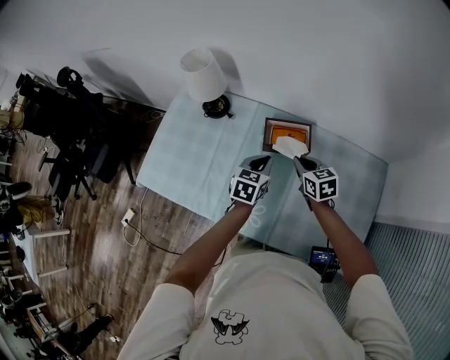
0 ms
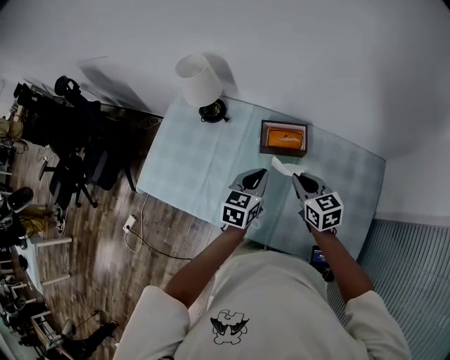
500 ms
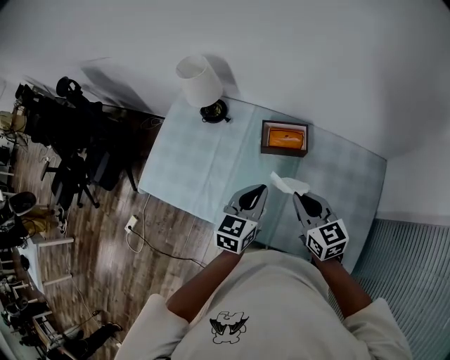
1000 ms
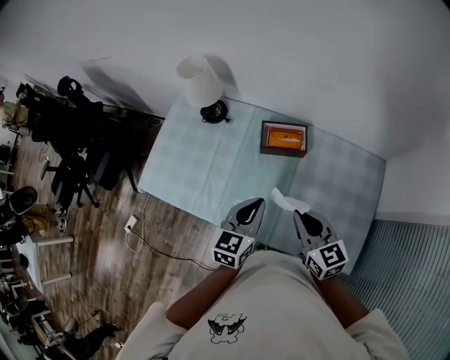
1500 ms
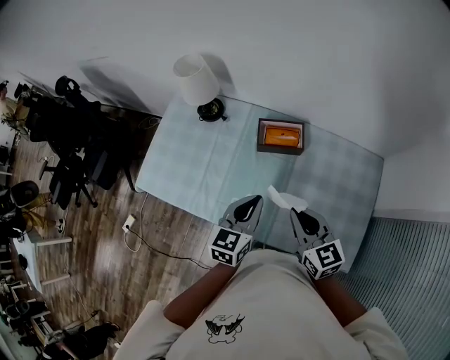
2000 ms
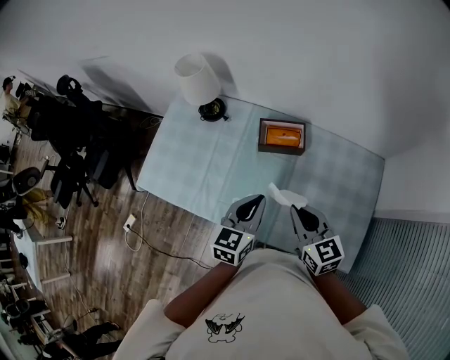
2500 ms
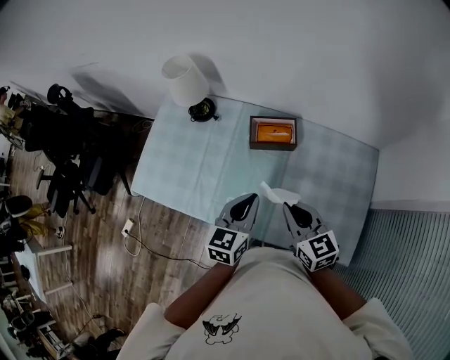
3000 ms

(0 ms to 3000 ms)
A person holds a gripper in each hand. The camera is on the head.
0 ms - 1500 ms: The grippers both shift backward and upward by about 20 cm.
1500 ms - 3000 ms: Neither gripper changes place.

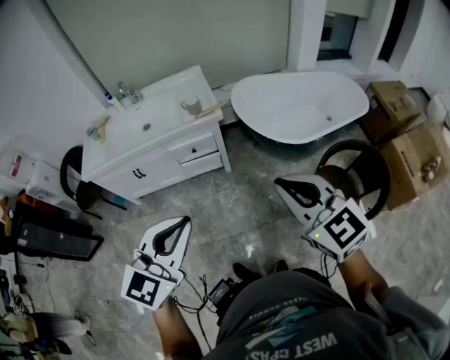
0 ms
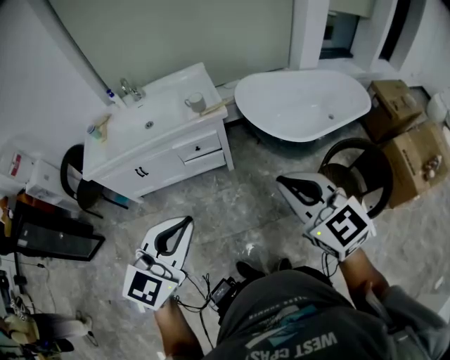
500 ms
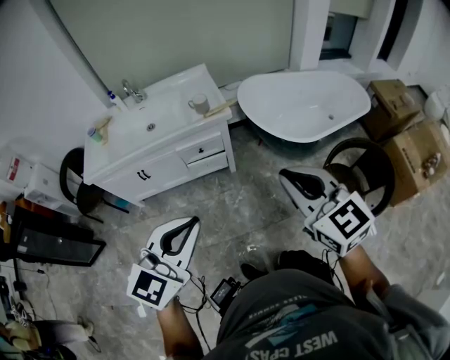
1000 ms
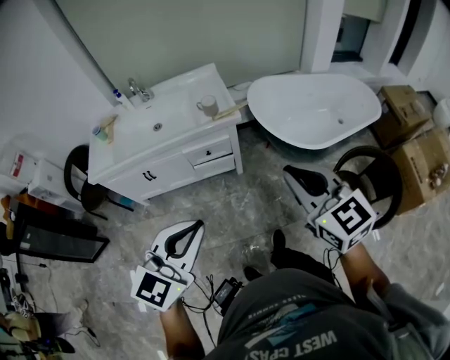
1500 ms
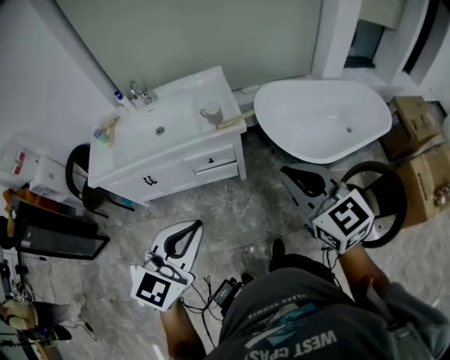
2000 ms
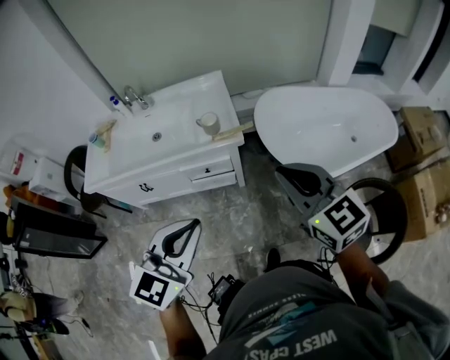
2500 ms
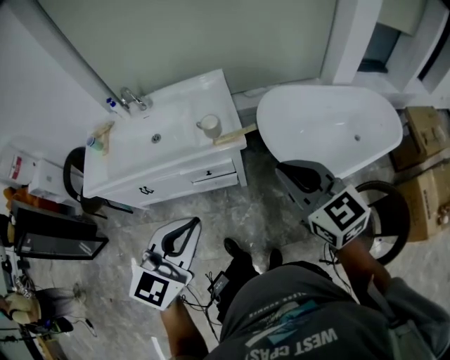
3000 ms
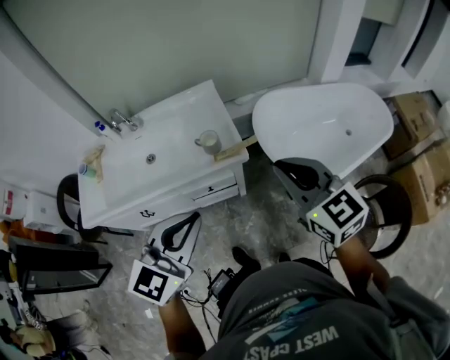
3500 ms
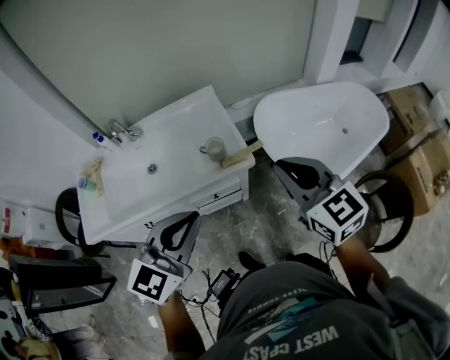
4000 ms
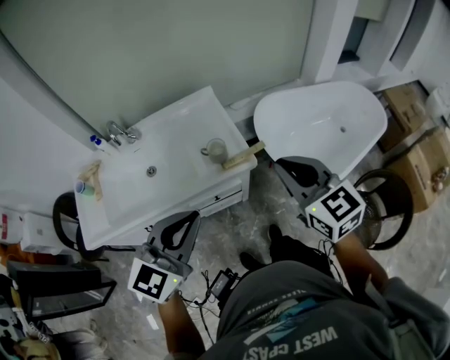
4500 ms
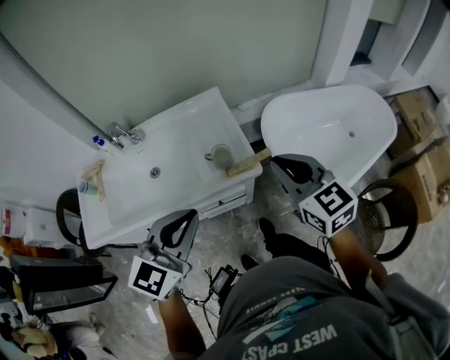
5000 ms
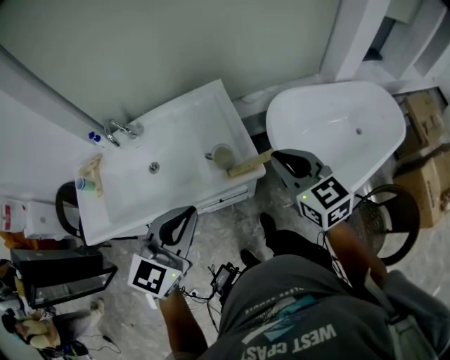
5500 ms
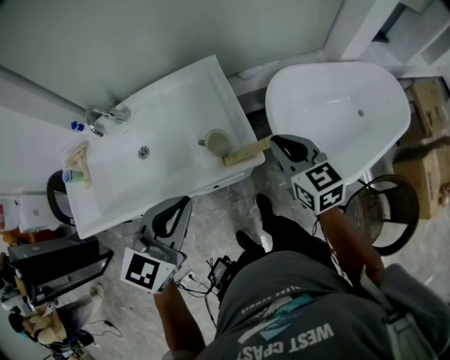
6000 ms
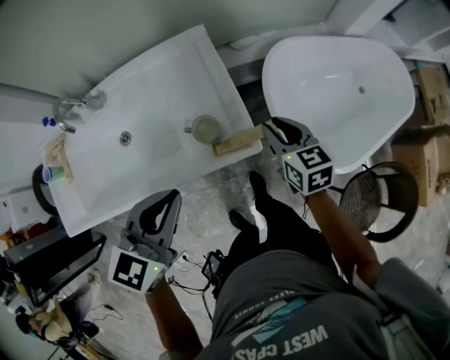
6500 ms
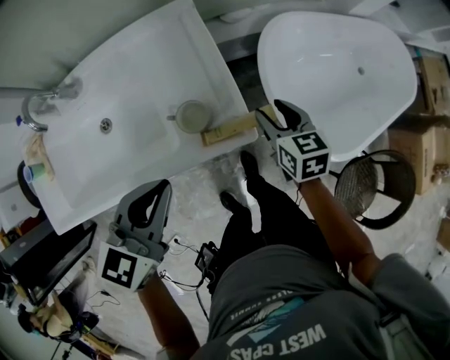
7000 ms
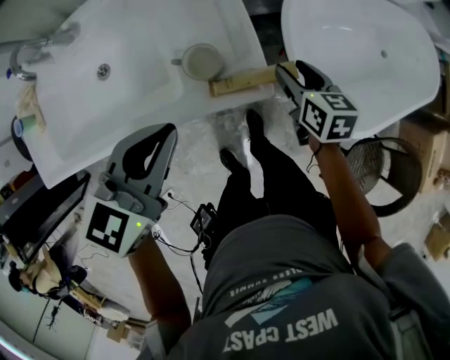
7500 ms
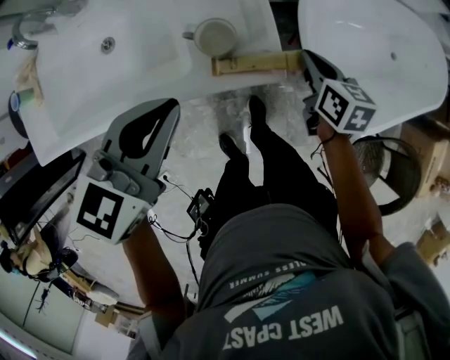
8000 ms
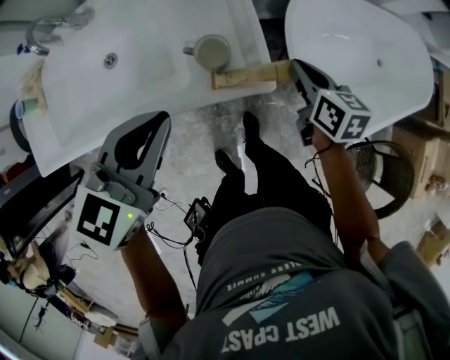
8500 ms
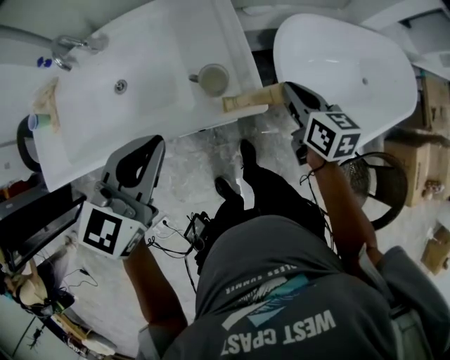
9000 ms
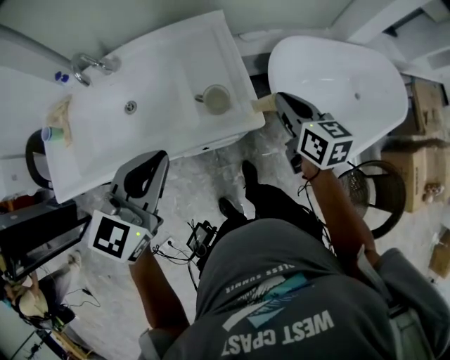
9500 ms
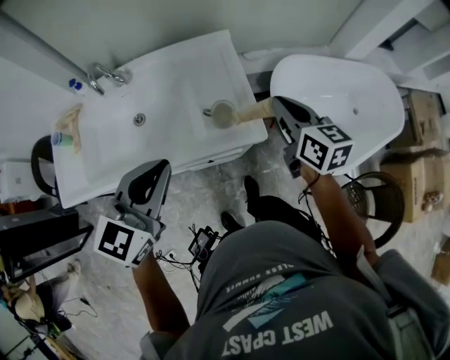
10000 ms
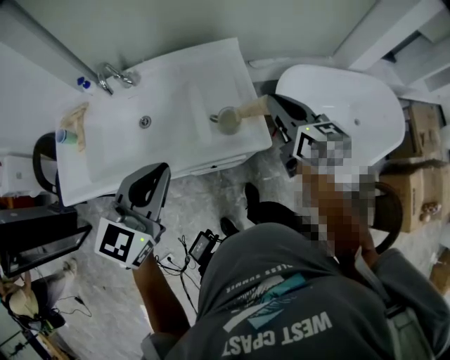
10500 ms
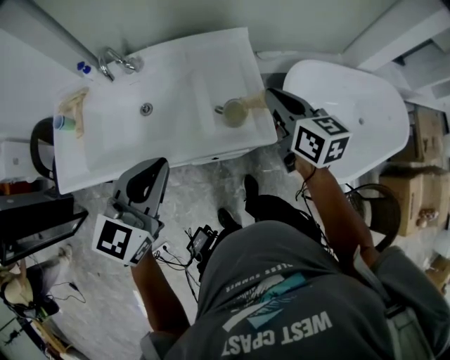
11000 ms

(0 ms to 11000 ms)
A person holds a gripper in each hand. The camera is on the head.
0 ms - 2000 ms: Both grippers move forward, roughly 15 cm.
2000 ms - 3500 ms: The two grippers go approximately 20 cm forward.
3500 ms - 5500 ms: The right gripper goes some 20 cm forward and downward. The left gripper moves forward and to the left, some 15 cm.
5500 ms - 7500 ms: The left gripper is displaced downward and forward by approximately 20 cm, and turns by some 20 degrees. Meanwhile the right gripper moves downward and forward, about 30 cm, rotates approximately 30 degrees, and opens up.
7500 ms - 9000 ms: The right gripper heads upward, covering some 10 cm, and closes up. Meanwhile the left gripper travels upward by roughly 5 cm.
9000 ms - 11000 ms: The right gripper is displaced upward and to the left by some 15 cm. Meanwhile the left gripper travels upward and to the left by about 5 cm.

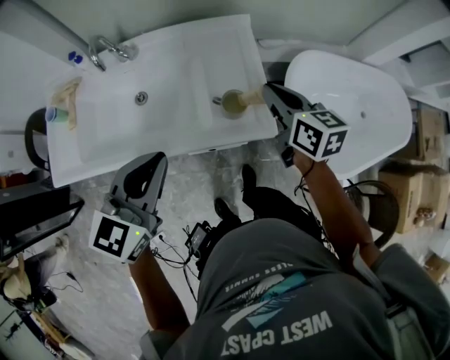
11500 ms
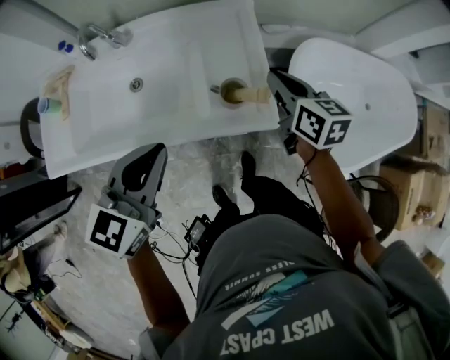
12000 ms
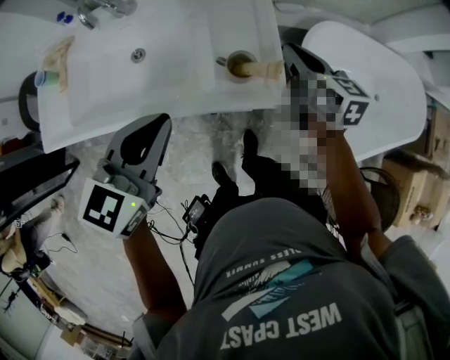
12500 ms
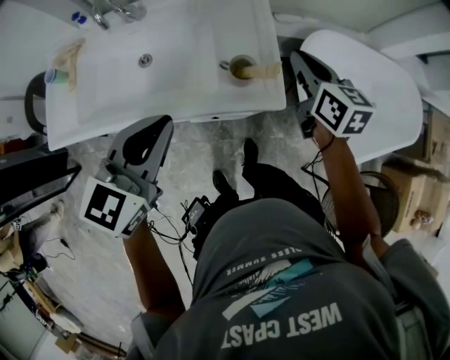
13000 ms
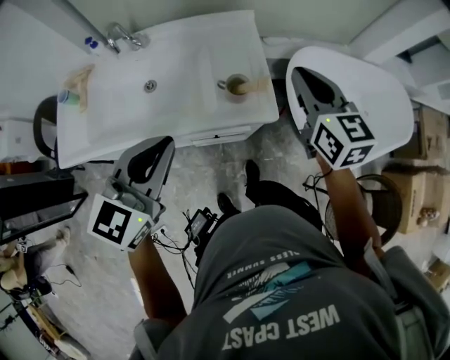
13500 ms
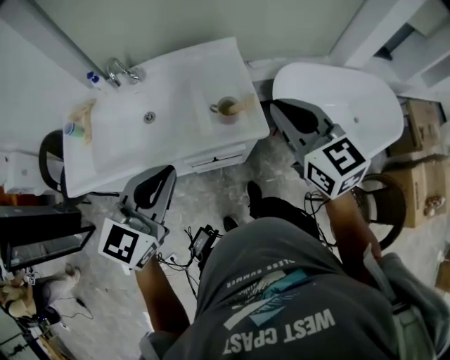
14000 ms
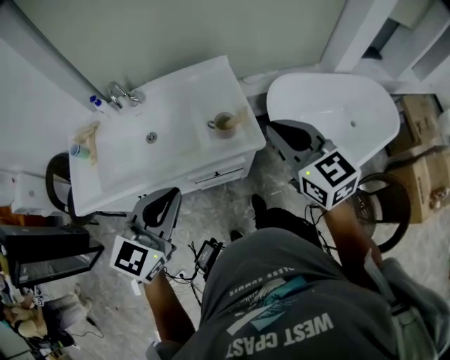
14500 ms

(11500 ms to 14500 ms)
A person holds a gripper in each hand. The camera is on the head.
13000 ms - 14500 ms: The right gripper shifts approximately 25 cm backward and upward, and changes its angle by some 20 degrees, while the left gripper goes about 10 cm backward and upward.

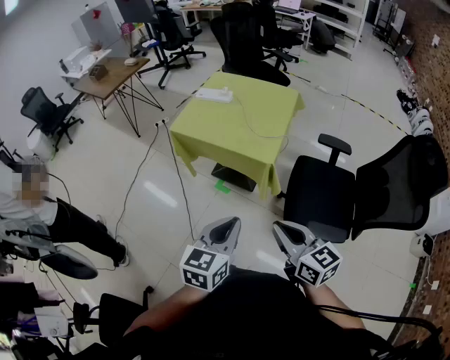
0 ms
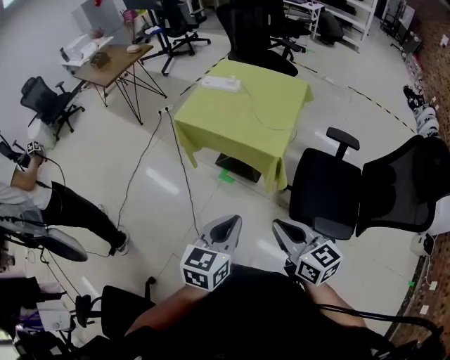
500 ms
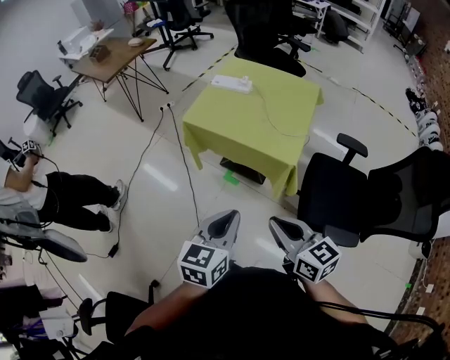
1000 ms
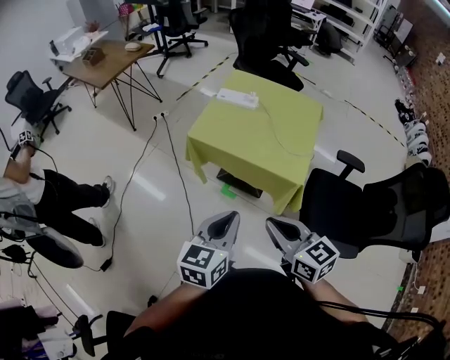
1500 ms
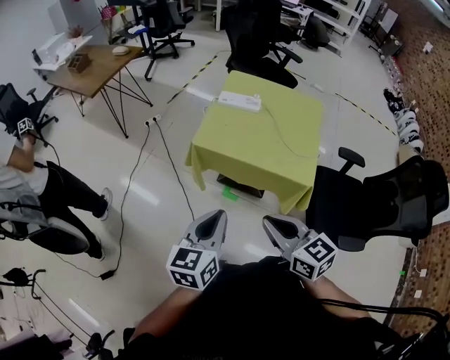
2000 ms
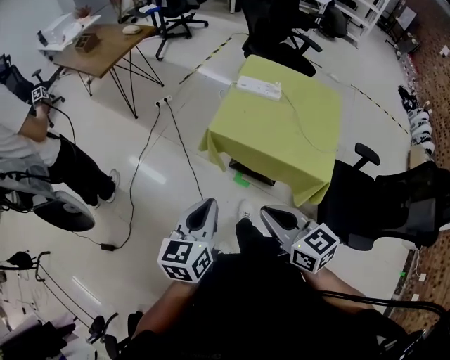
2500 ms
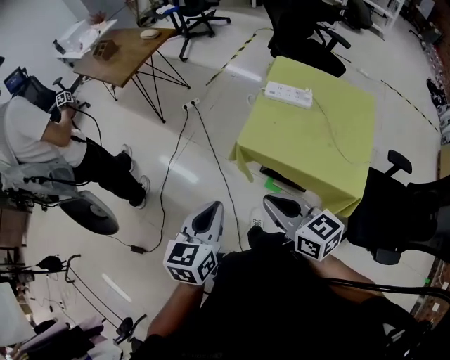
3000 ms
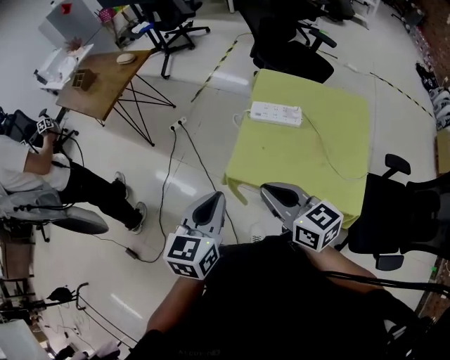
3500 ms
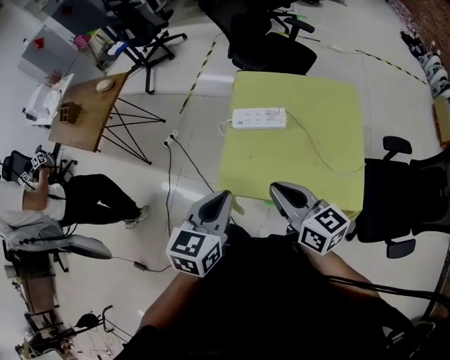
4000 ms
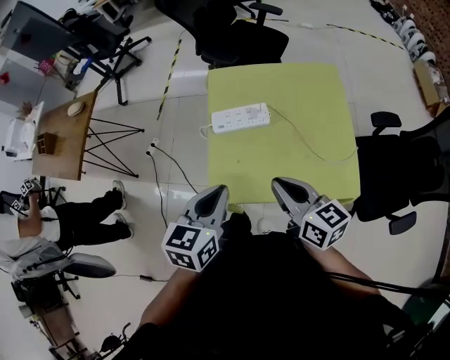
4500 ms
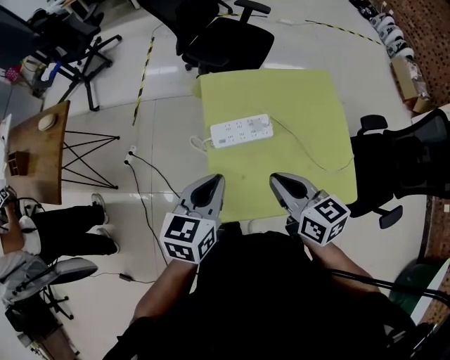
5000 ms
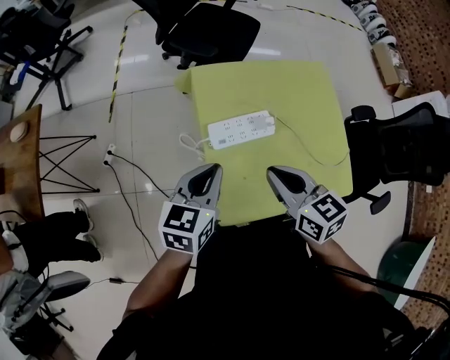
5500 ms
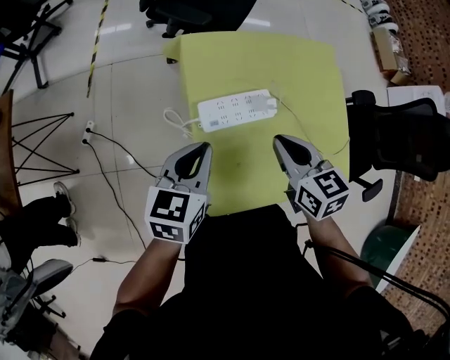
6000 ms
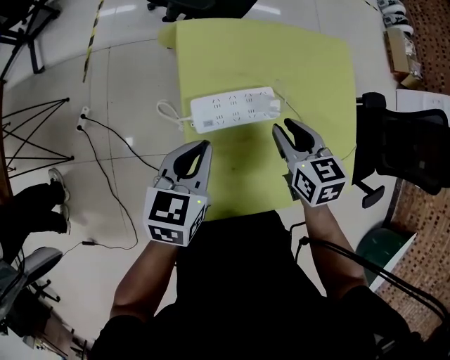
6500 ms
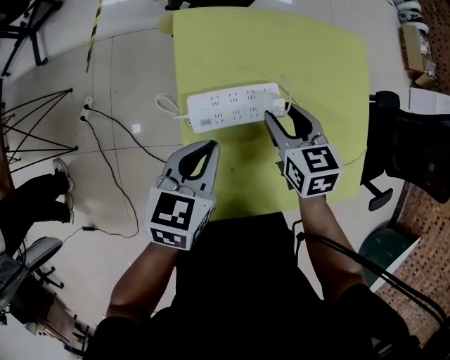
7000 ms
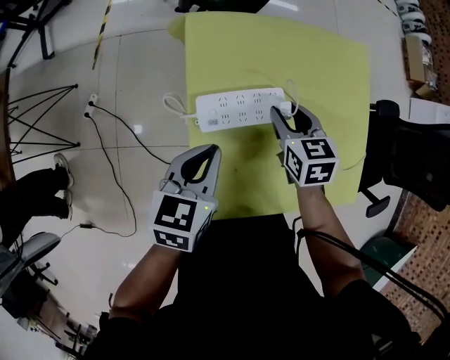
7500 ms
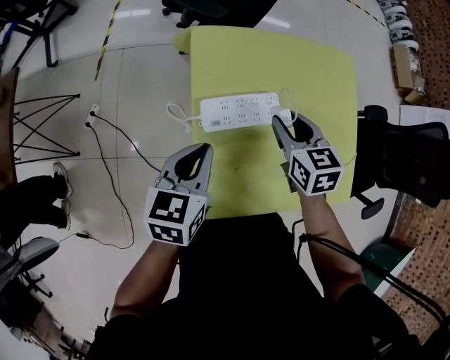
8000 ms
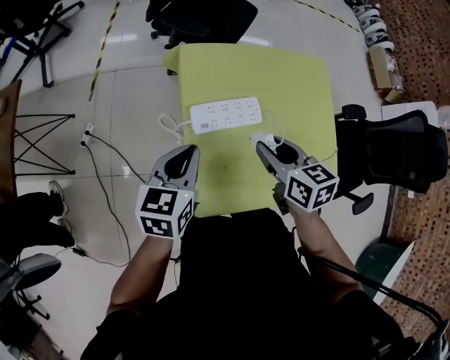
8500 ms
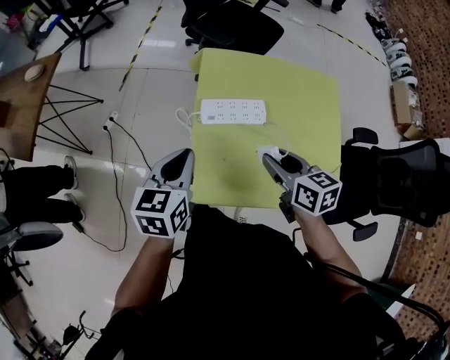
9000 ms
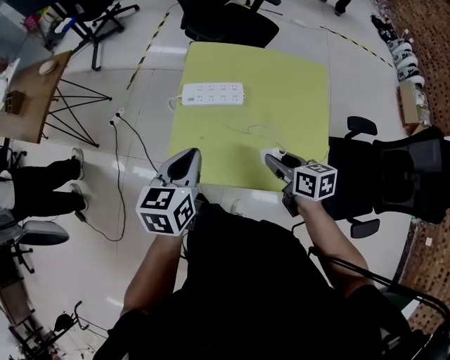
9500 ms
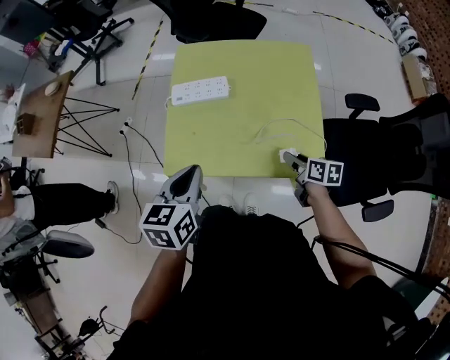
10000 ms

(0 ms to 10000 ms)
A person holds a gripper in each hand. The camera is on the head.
0 ms - 2000 ms: The grippers both shift to the left and forward by approximately 30 cm.
2000 ms - 4000 ms: The two grippers go roughly 30 cm forward. The left gripper swivels roughly 20 degrees; the right gripper changes its angle by approximately 20 degrees.
4000 ms - 6000 ms: The left gripper moves about 30 cm, and rotates some 20 degrees. The right gripper ends up approximately 25 cm from where it was, and rotates some 40 degrees.
6000 ms - 8000 ms: The right gripper heads forward and downward, covering some 10 cm, and opens.
8000 ms - 10000 ms: The right gripper changes place by approximately 35 cm, and turns by about 40 degrees, while the left gripper moves roughly 25 cm.
